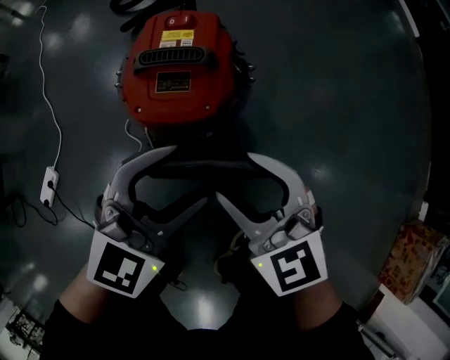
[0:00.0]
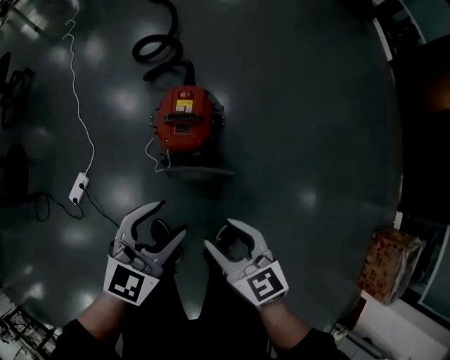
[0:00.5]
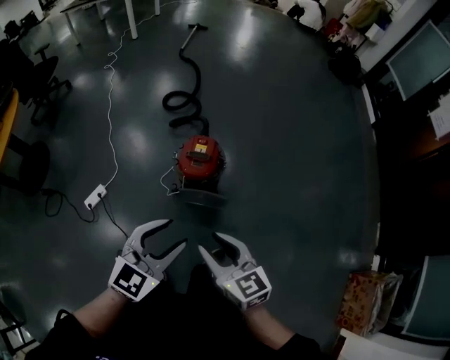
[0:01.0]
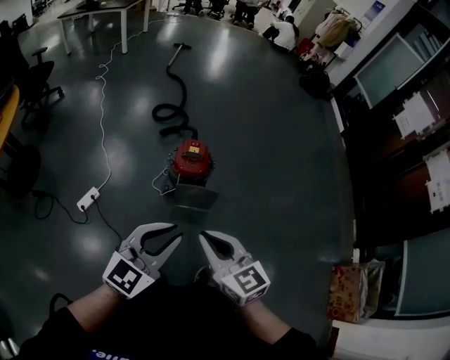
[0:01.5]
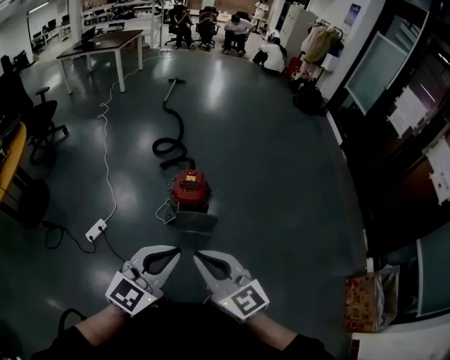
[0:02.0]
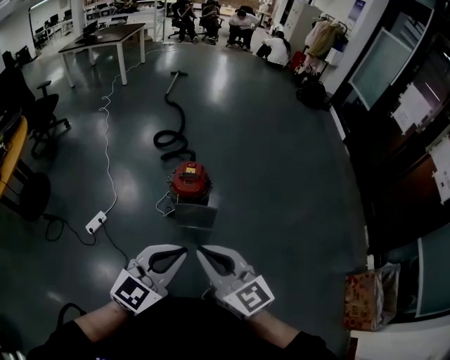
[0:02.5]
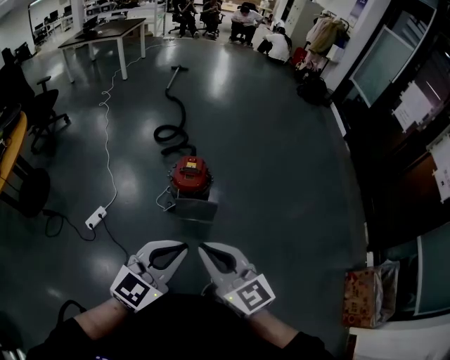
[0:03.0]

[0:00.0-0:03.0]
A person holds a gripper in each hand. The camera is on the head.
0:00.0 to 0:01.5: The grippers both shift upward and backward by about 60 cm. The right gripper swivels some 20 degrees, and closes its fingers. Meanwhile the left gripper closes its fingers.
0:01.5 to 0:03.0: The left gripper shifts approximately 10 cm to the right; the right gripper moves upward, about 5 cm.

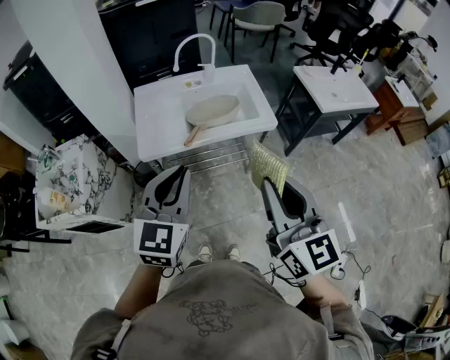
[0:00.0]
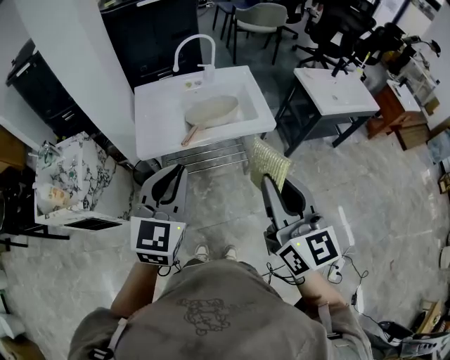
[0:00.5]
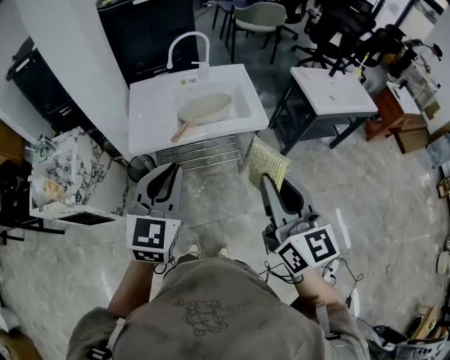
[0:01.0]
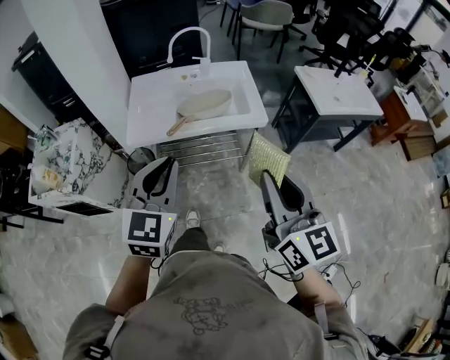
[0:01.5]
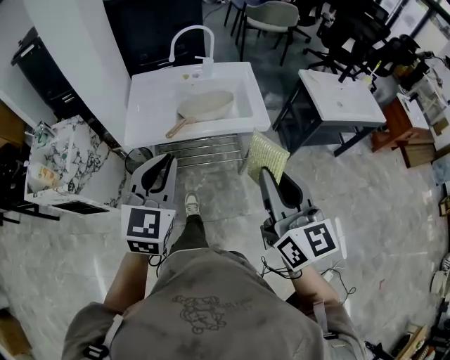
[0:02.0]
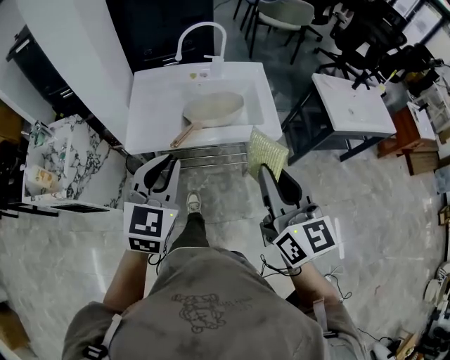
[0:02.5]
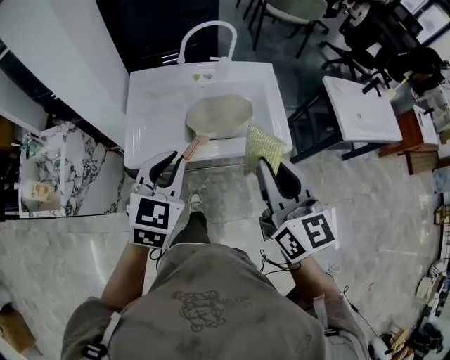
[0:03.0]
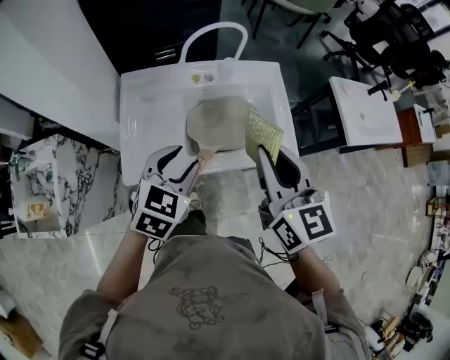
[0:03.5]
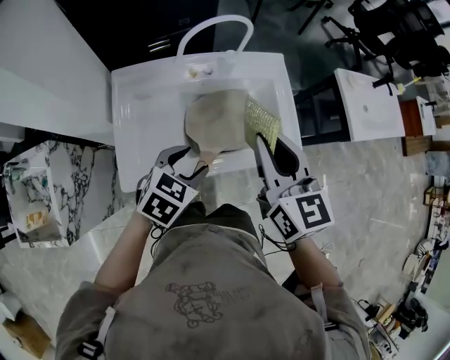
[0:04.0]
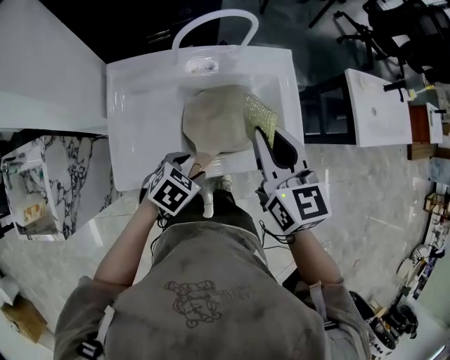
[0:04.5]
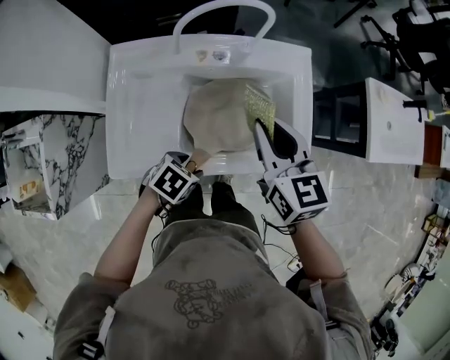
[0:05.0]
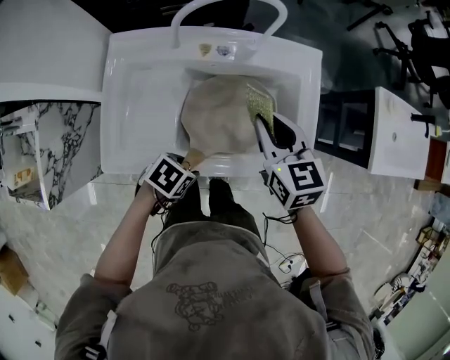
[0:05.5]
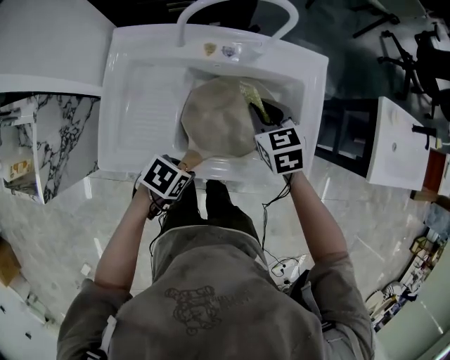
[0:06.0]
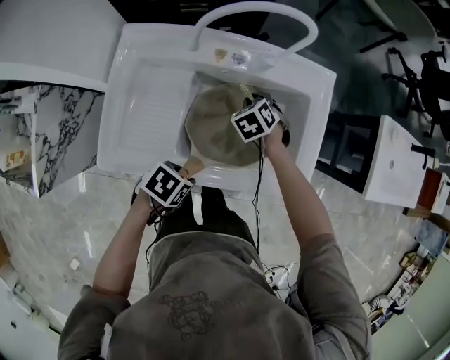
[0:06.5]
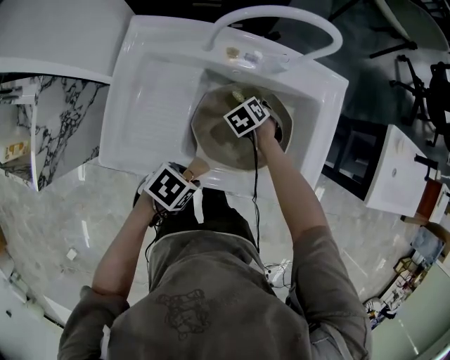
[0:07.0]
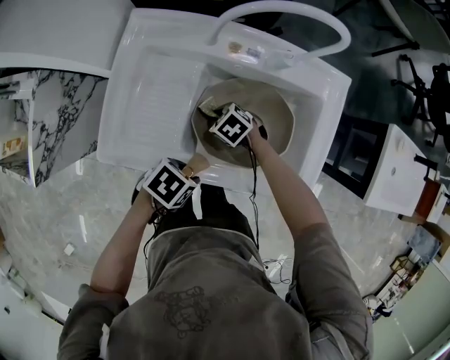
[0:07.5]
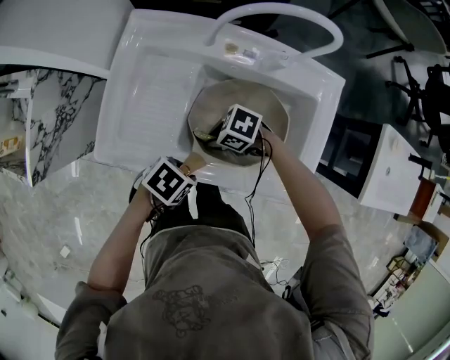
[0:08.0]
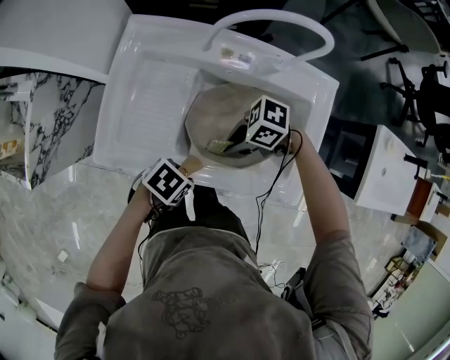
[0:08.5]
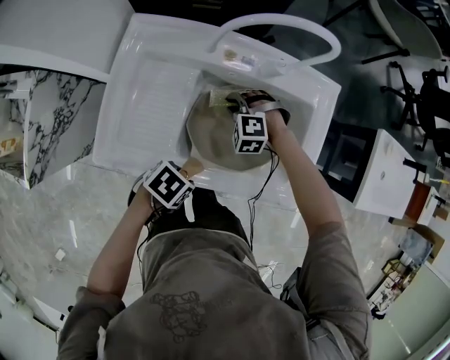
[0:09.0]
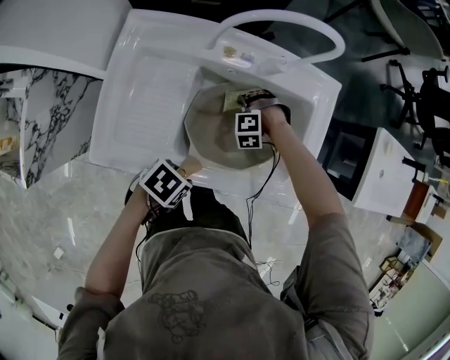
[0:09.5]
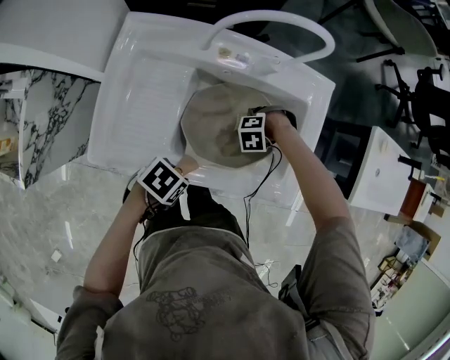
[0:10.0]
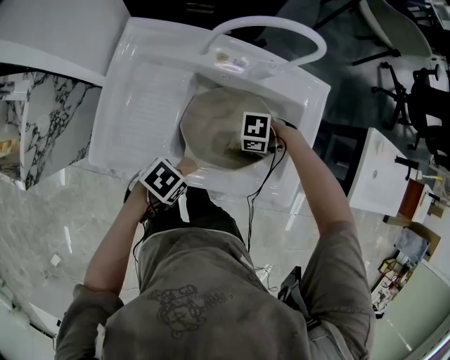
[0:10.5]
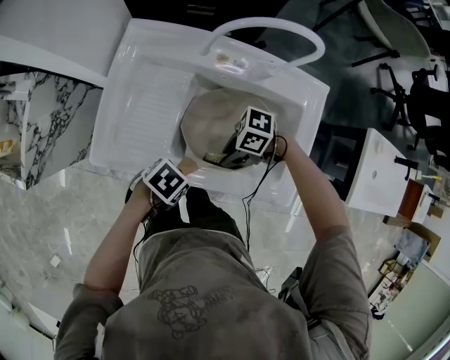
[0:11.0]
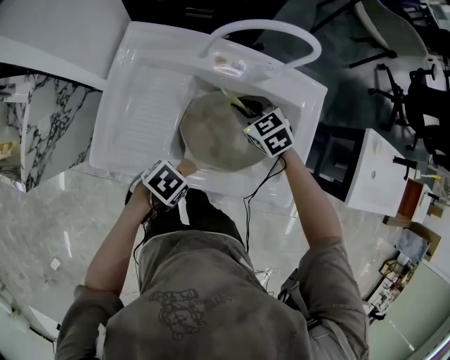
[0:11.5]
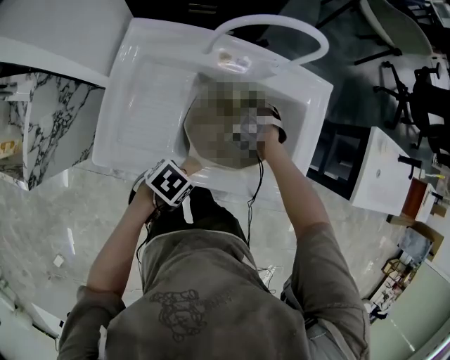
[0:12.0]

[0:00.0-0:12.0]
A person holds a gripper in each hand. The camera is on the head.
0:00.0 to 0:02.0: The right gripper moves to the right, approximately 10 cm. The left gripper travels to the right by some 5 cm.
0:02.0 to 0:04.0: The left gripper moves forward and downward, about 35 cm, angles its fingers downward, by approximately 30 degrees, and opens. The right gripper travels forward by approximately 40 cm.
0:04.0 to 0:06.0: Both grippers move downward, about 20 cm. The left gripper swivels approximately 40 degrees. The right gripper tilts its fingers roughly 30 degrees downward.
0:06.0 to 0:08.0: The right gripper shifts by about 20 cm, and swivels approximately 70 degrees.
0:08.0 to 0:10.0: The right gripper moves about 20 cm, and tips its fingers downward by about 30 degrees.
0:10.0 to 0:12.0: The right gripper reaches roughly 15 cm upward, then returns, and changes its angle by about 50 degrees.

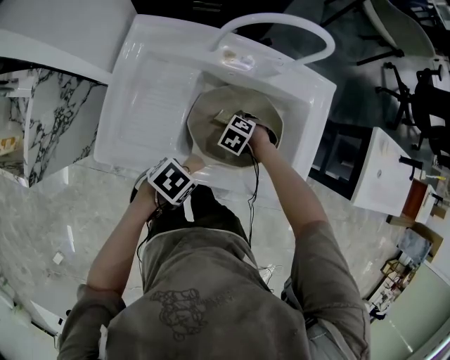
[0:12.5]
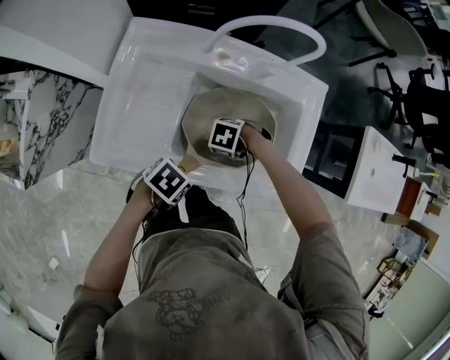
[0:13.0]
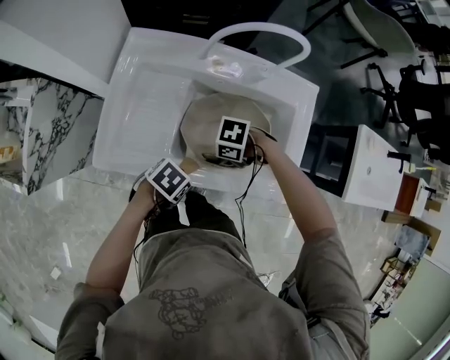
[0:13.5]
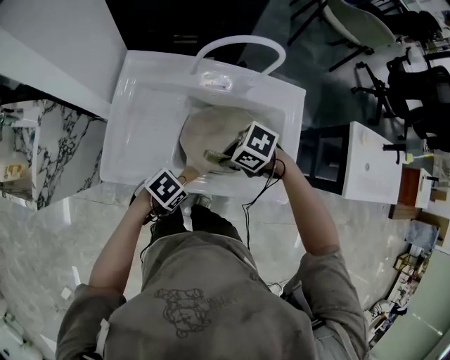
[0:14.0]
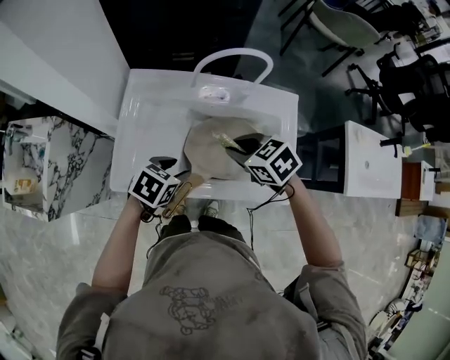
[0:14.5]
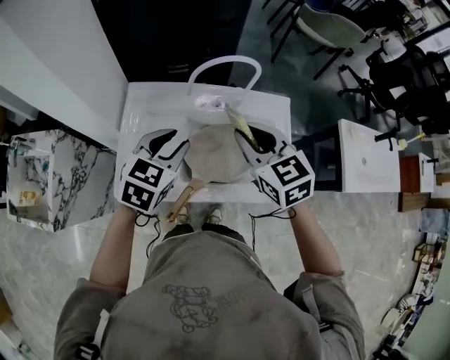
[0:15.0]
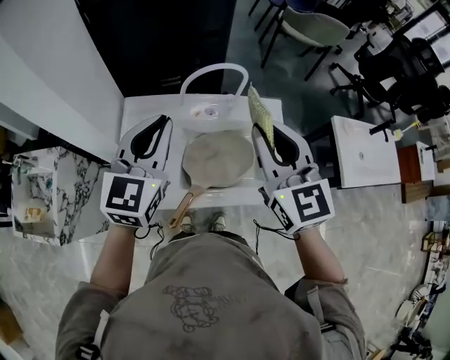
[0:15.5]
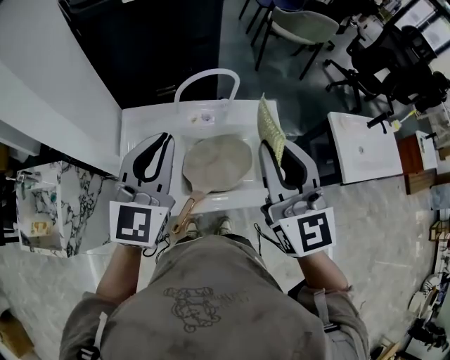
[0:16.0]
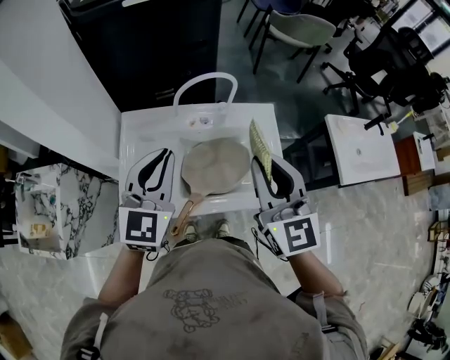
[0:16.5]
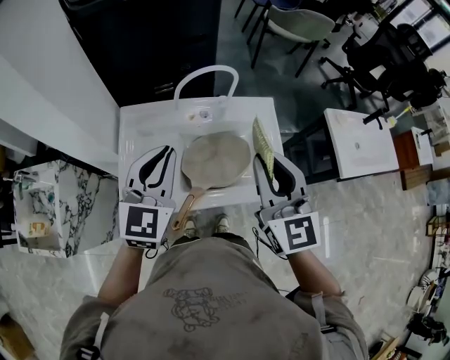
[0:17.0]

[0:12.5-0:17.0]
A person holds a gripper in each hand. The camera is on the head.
0:12.5 to 0:14.5: The right gripper goes about 30 cm upward, and points its fingers some 30 degrees further upward, while the left gripper heads upward, covering some 10 cm, and swivels roughly 30 degrees.
0:14.5 to 0:17.0: Both grippers travel together upward, about 25 cm. The right gripper tips its fingers upward by approximately 50 degrees, while the left gripper points its fingers about 40 degrees further upward, and closes.

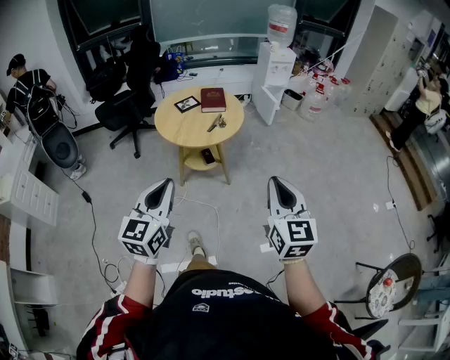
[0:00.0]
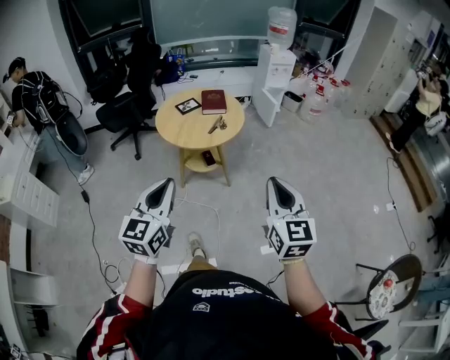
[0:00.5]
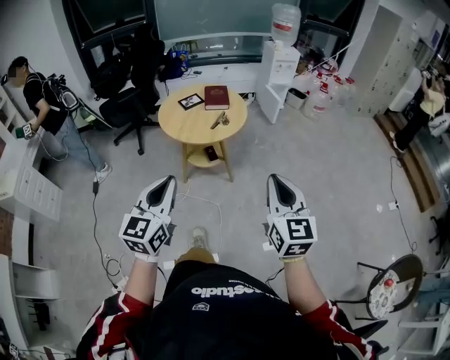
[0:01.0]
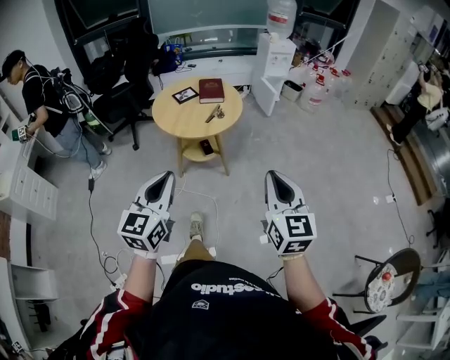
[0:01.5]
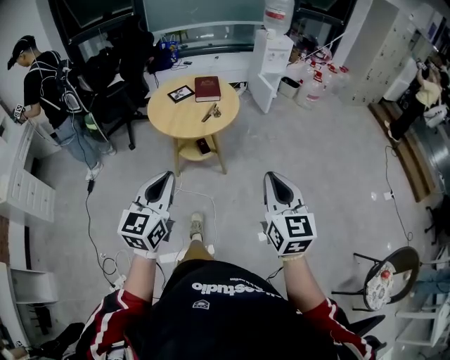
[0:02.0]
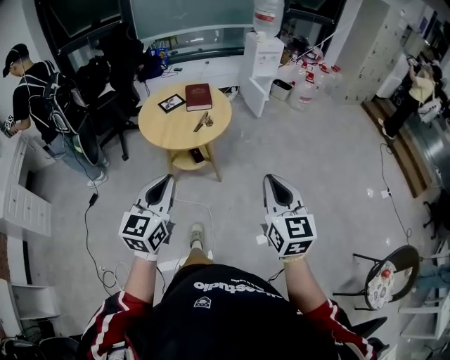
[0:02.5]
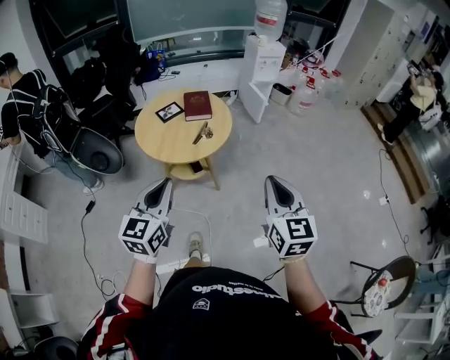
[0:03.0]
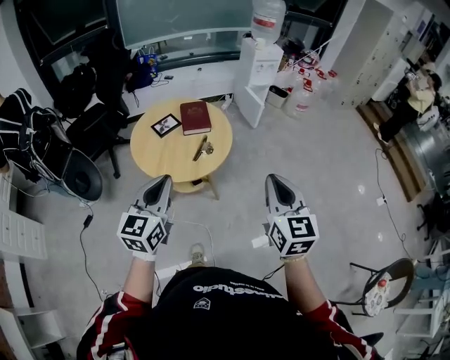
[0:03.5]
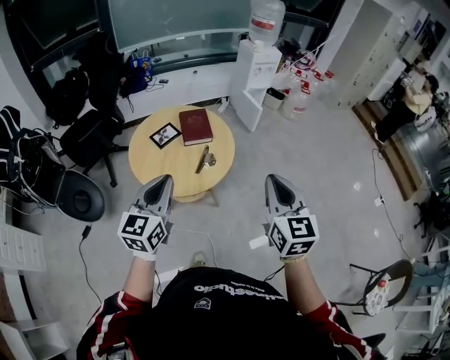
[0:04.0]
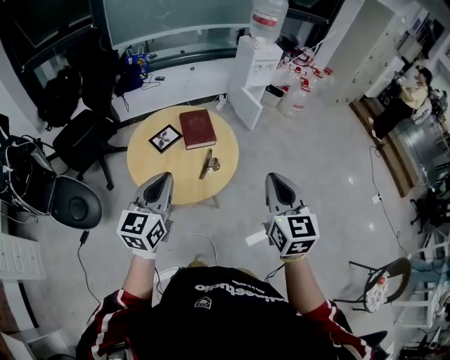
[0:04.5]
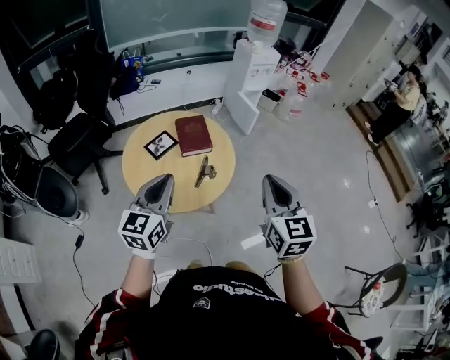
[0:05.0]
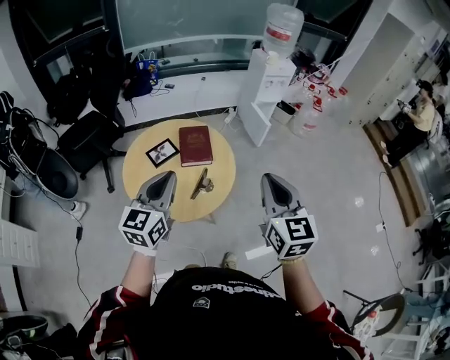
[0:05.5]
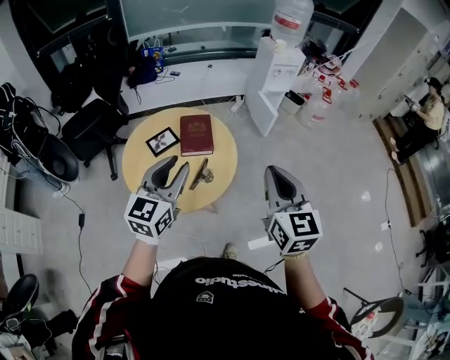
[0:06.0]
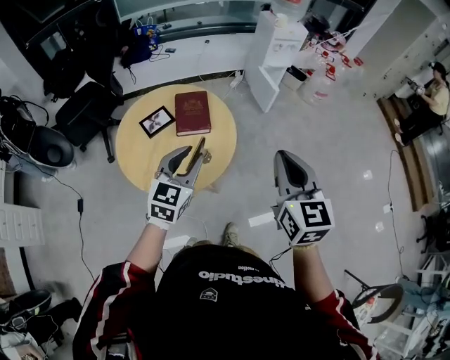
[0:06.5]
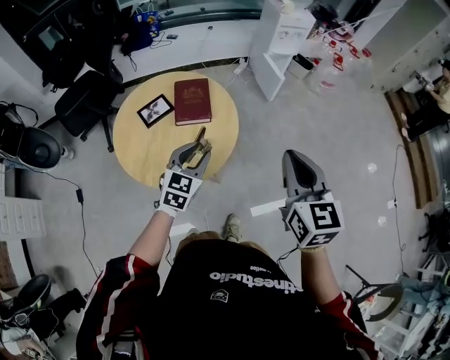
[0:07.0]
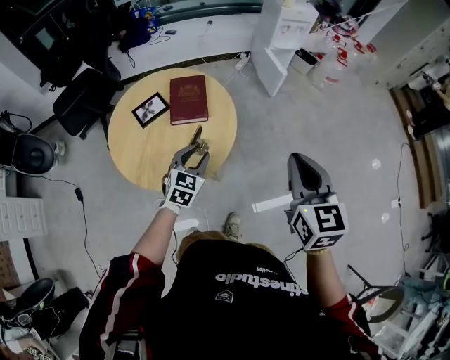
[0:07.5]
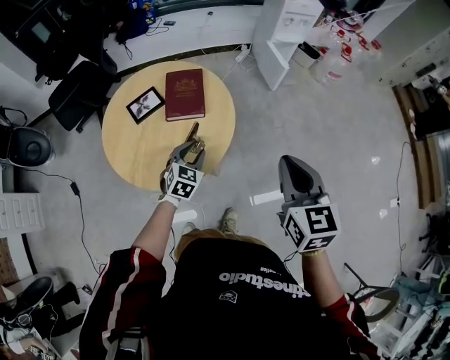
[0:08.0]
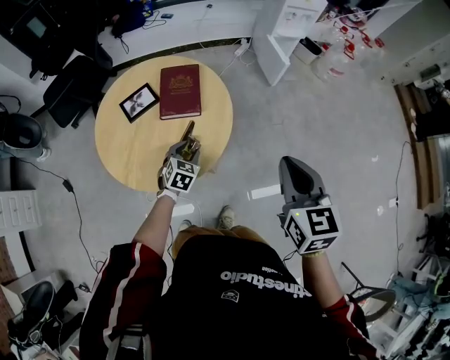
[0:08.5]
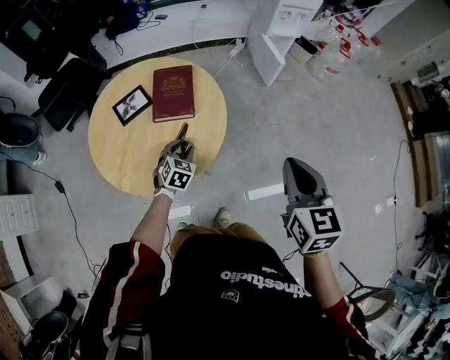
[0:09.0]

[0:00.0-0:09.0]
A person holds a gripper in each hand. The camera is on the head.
0:00.0 to 0:02.0: There are only small adjustments of the grippers.
0:02.0 to 0:04.5: Both grippers move forward, some 40 cm.
0:04.5 to 0:07.0: The right gripper is displaced forward and to the right by about 20 cm. The left gripper goes approximately 30 cm to the right, downward and forward, turns by roughly 20 degrees, and opens up.
0:07.0 to 0:09.0: The right gripper travels downward, forward and to the right by some 15 cm, while the left gripper is displaced downward and forward by some 25 cm, and changes its angle by approximately 30 degrees.
